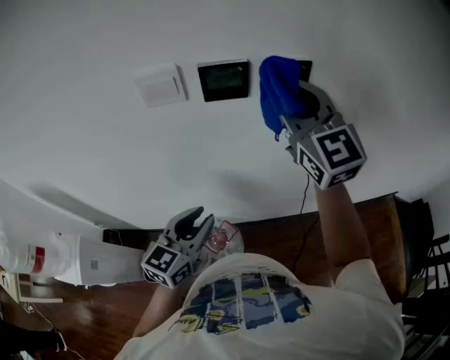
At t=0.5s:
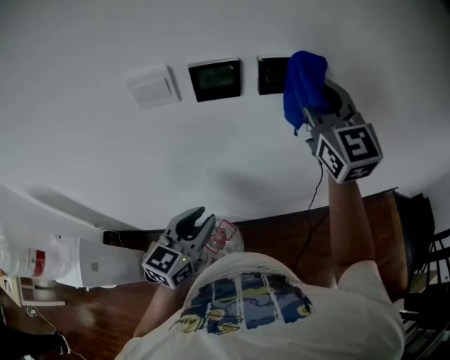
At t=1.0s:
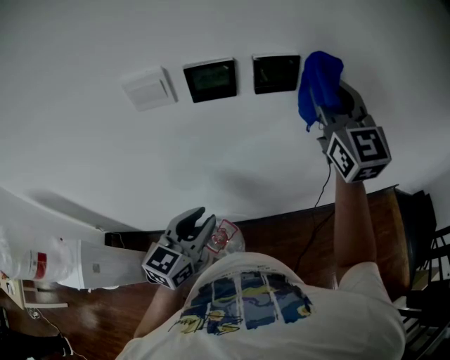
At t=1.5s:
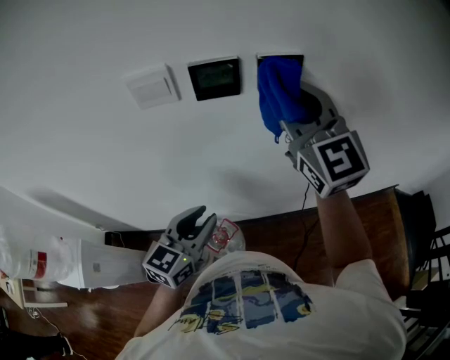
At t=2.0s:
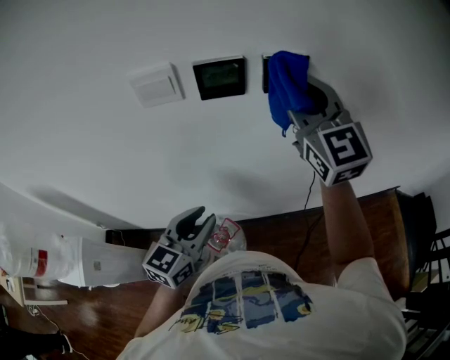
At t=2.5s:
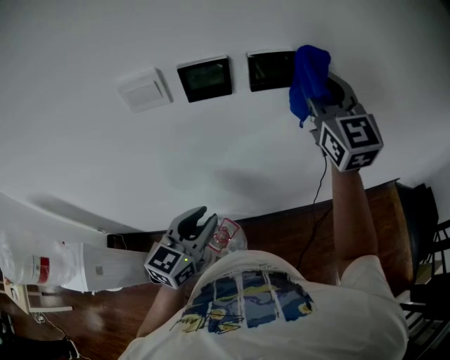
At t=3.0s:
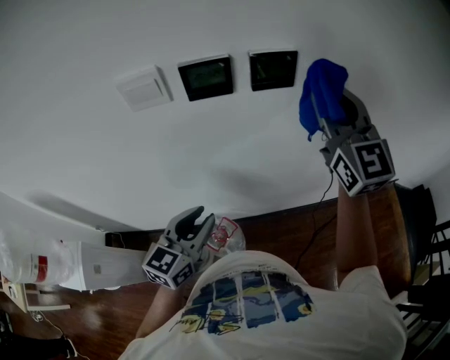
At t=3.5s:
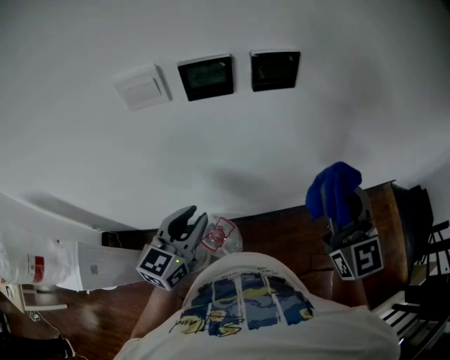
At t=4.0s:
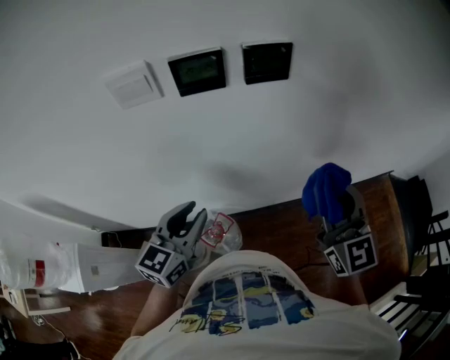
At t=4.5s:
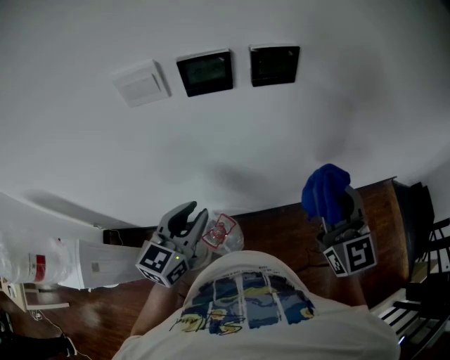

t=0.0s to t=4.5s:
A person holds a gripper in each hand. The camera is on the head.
t=0.0s to t=2.0s: The right gripper moves about 10 cm to the right and comes back.
t=2.0s to t=4.5s: The right gripper goes approximately 20 cm backward, downward and to the right.

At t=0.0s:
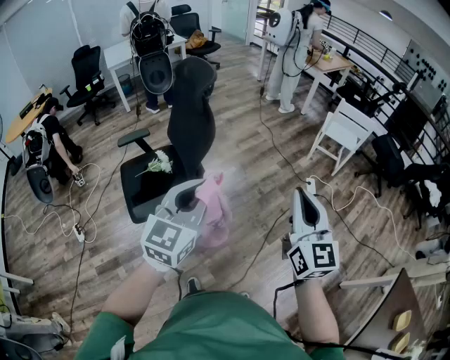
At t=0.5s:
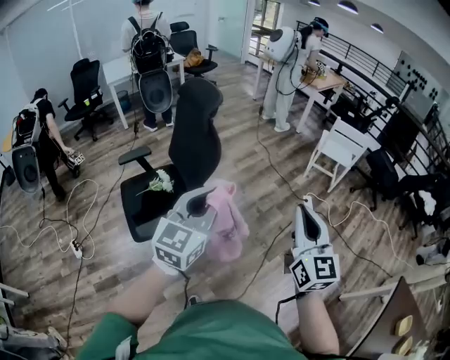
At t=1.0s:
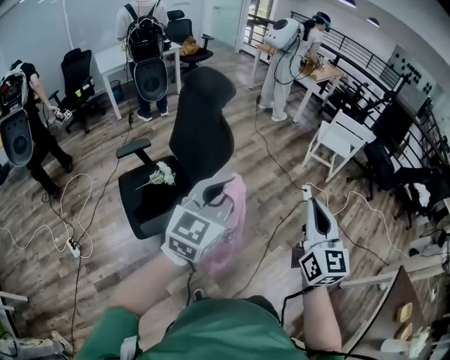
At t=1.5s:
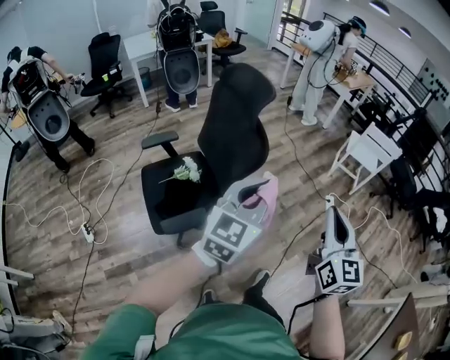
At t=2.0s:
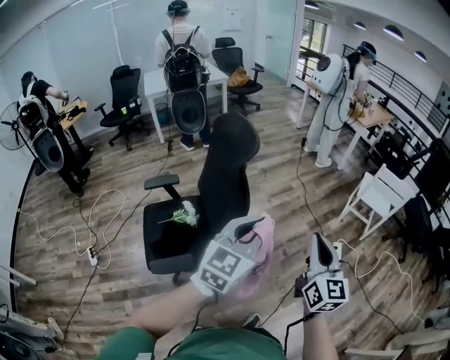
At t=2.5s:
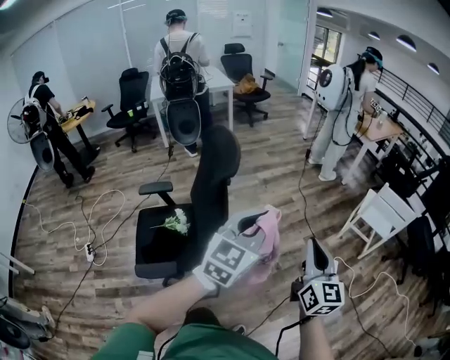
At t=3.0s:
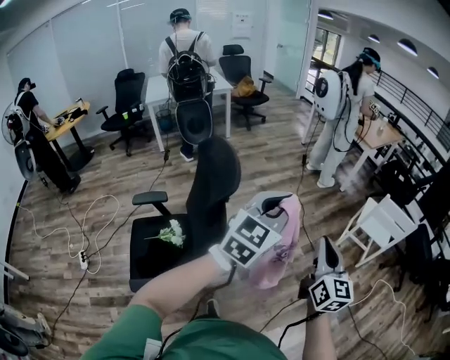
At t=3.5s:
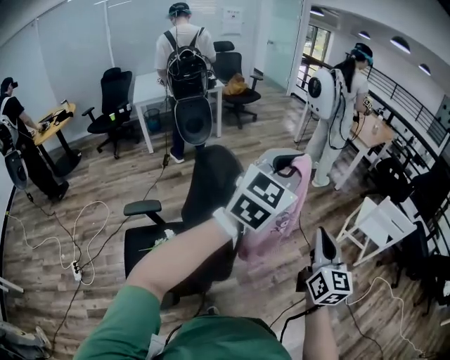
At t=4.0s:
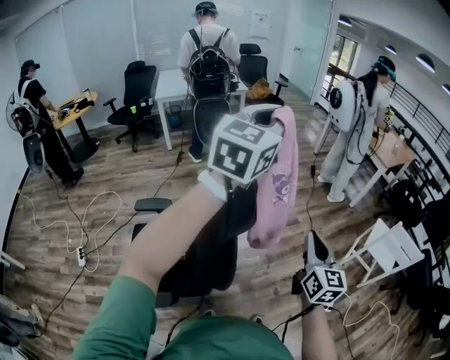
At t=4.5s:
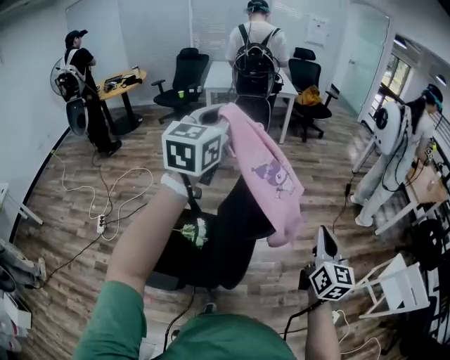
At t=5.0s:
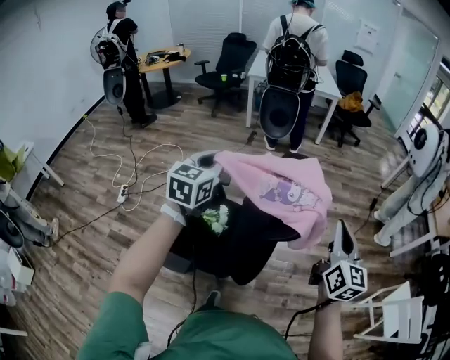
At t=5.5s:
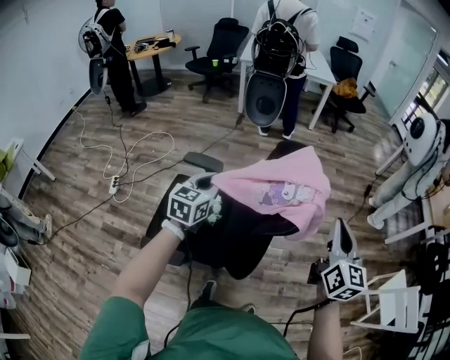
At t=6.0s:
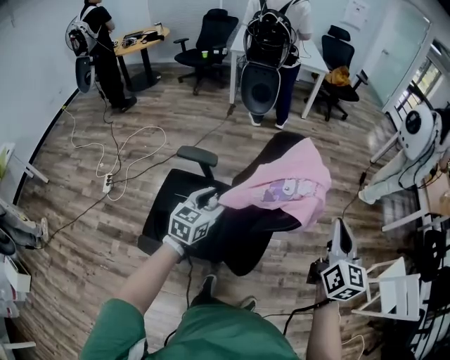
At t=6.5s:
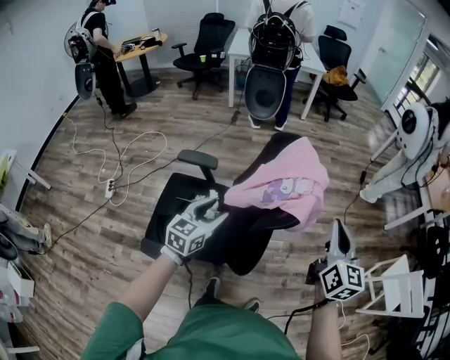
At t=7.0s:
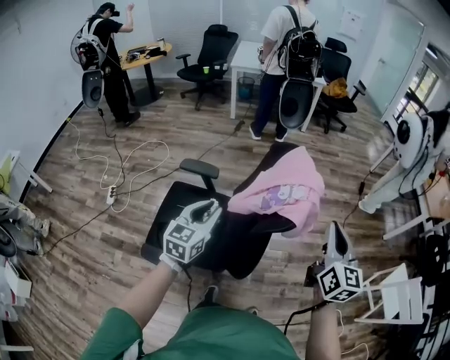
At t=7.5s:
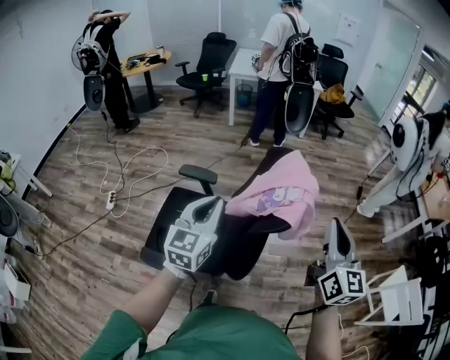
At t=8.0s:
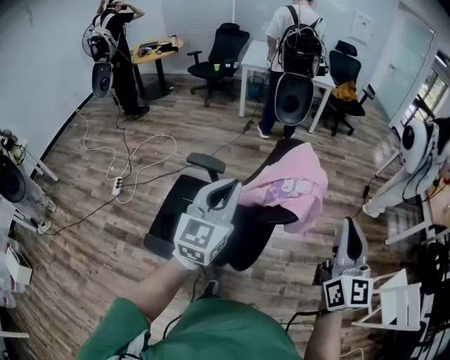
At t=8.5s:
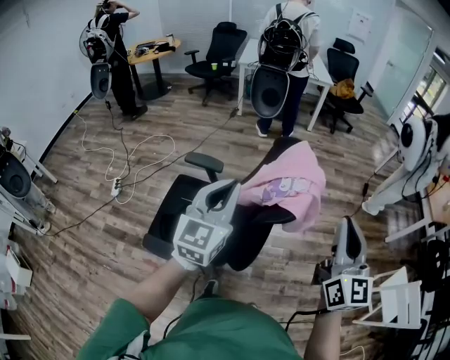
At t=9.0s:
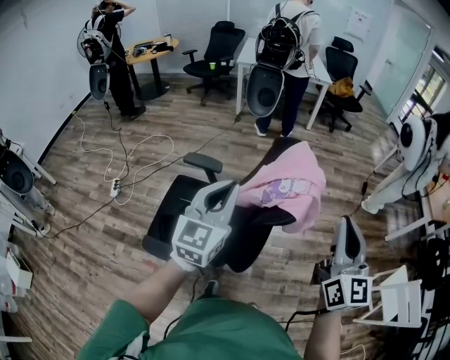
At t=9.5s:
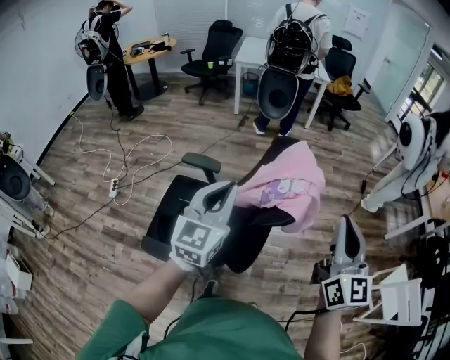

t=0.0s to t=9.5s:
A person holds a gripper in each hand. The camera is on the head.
t=0.0s to t=2.0s: Both grippers travel together forward, roughly 20 cm.
t=2.0s to t=4.0s: The right gripper shifts roughly 30 cm forward. The left gripper travels forward and upward by roughly 50 cm.
t=4.0s to t=5.5s: The right gripper ends up roughly 15 cm from where it was; the left gripper is displaced downward by roughly 35 cm, and swivels approximately 40 degrees.
t=5.5s to t=7.5s: The left gripper travels backward and upward by about 10 cm, and opens, then closes again. Meanwhile the right gripper heads upward, covering approximately 5 cm.
t=7.5s to t=9.5s: There are only small adjustments of the grippers.

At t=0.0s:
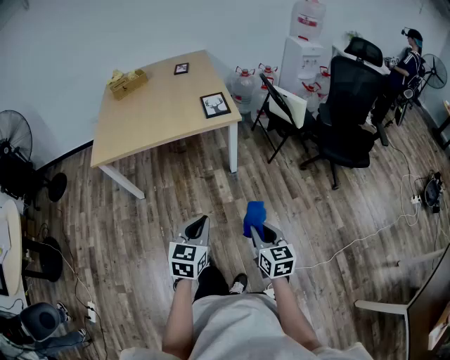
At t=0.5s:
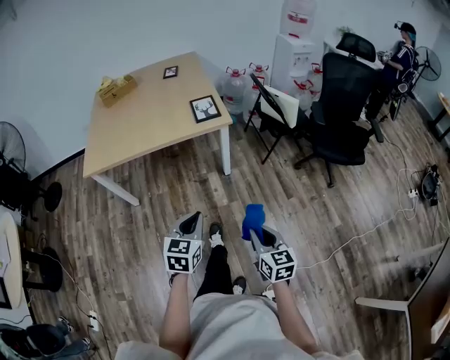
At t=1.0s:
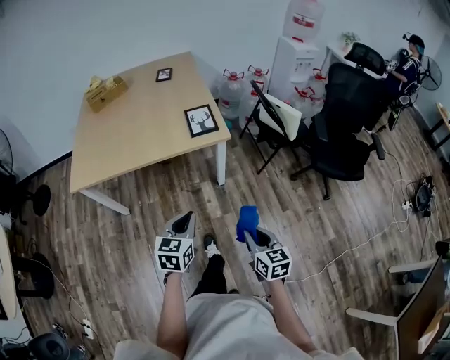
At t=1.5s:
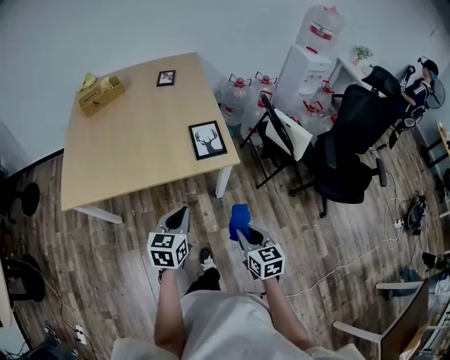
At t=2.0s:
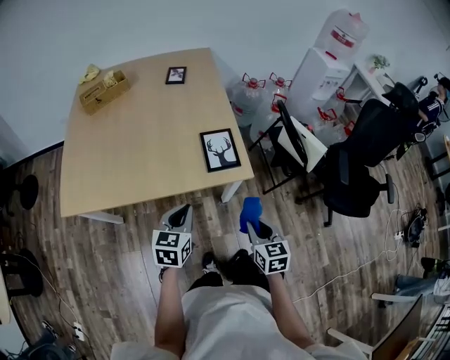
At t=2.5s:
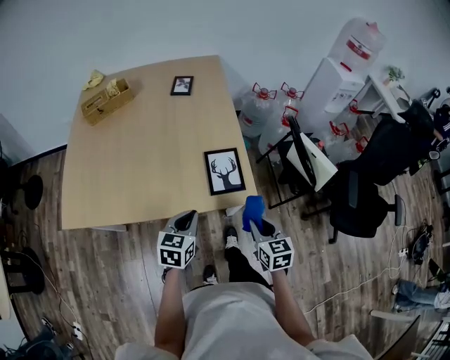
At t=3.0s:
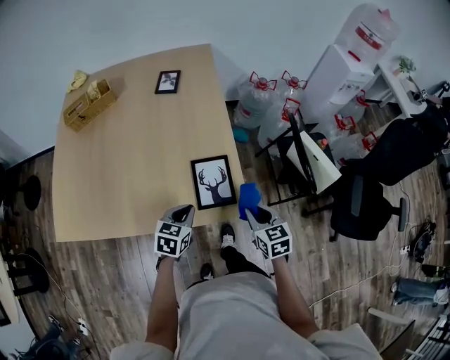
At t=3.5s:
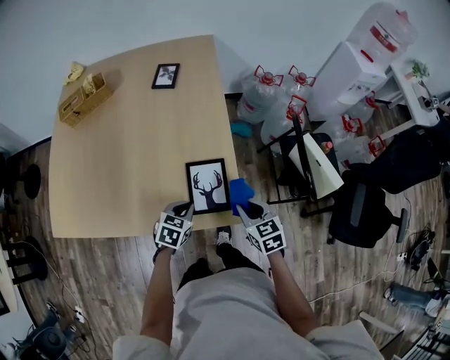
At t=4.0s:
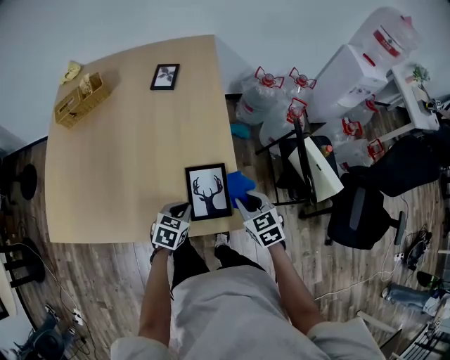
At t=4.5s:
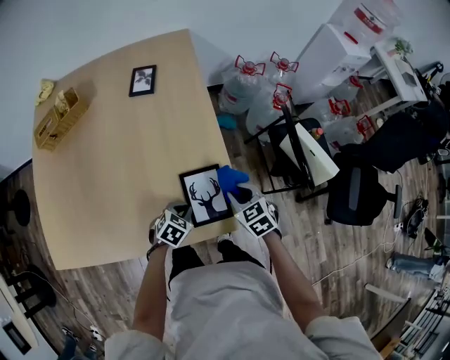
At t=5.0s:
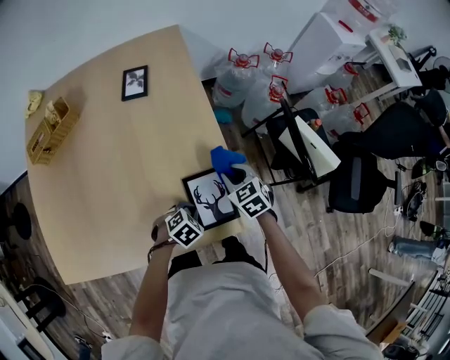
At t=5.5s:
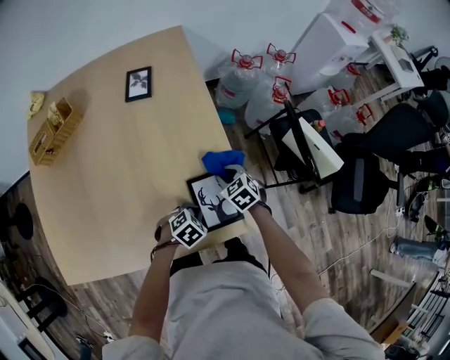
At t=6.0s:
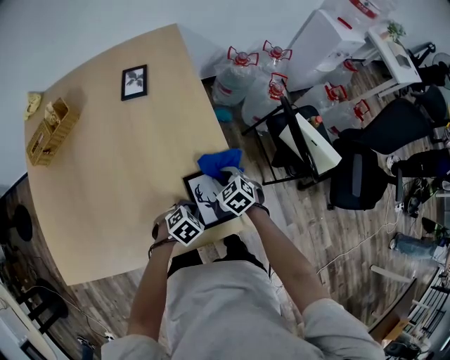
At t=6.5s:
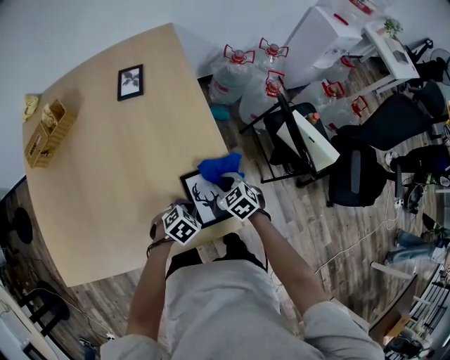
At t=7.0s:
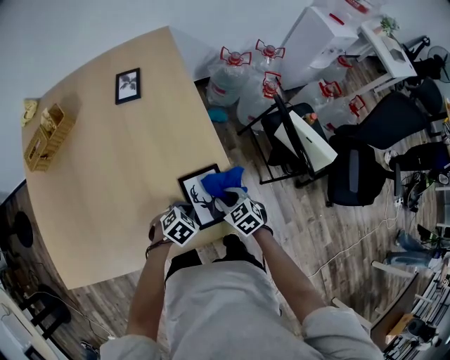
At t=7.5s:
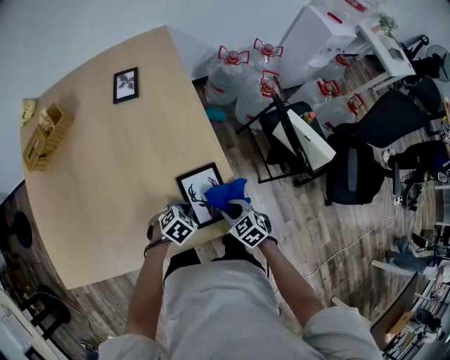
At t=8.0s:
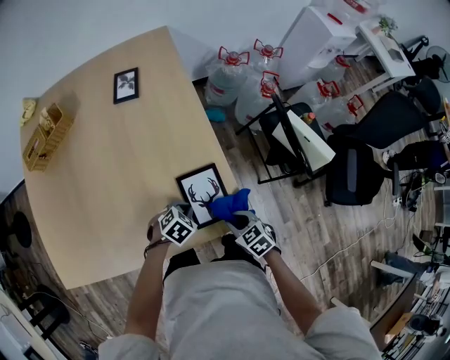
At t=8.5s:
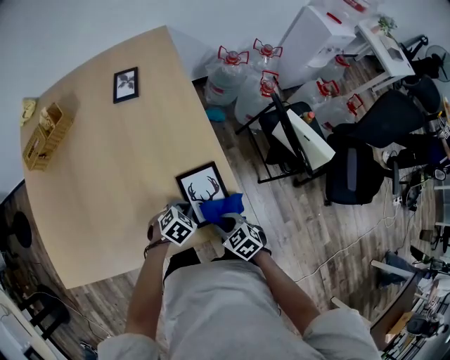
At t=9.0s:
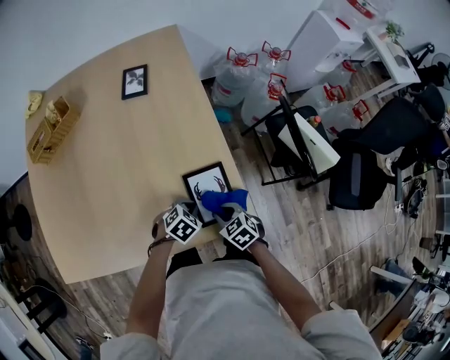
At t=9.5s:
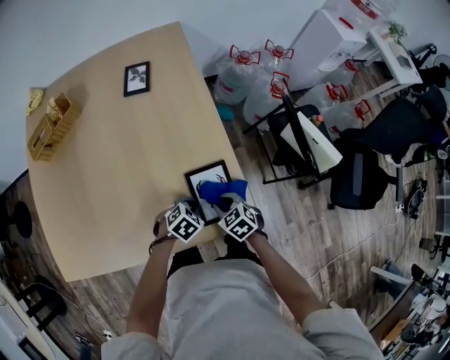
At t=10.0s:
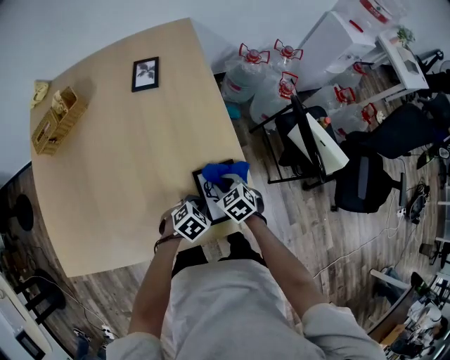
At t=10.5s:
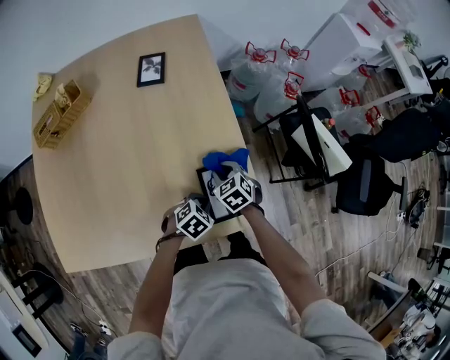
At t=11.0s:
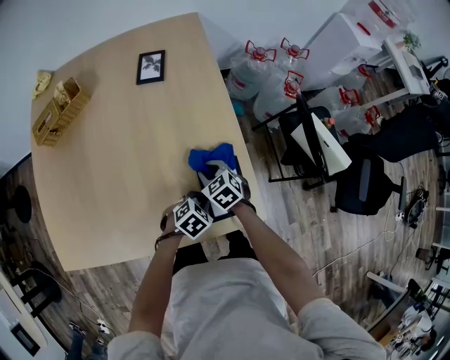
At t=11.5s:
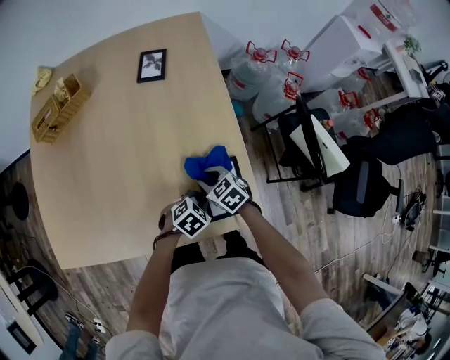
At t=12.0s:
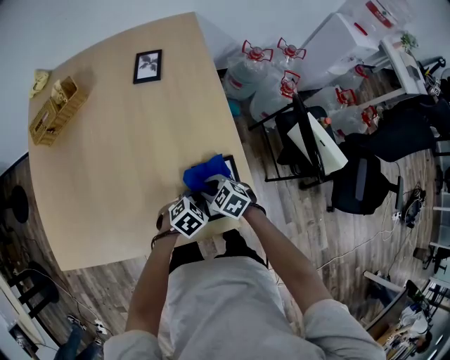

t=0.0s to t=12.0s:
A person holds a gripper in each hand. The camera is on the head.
t=0.0s to t=2.0s: Both grippers are carried forward, roughly 50 cm.
t=2.0s to t=4.0s: The right gripper shifts some 35 cm forward, and turns by some 30 degrees. Meanwhile the left gripper heads forward and downward, covering about 30 cm, and swivels some 20 degrees.
t=4.0s to t=6.0s: The left gripper moves roughly 5 cm, and rotates about 40 degrees, while the right gripper heads downward, to the left and forward, covering approximately 15 cm.
t=6.0s to t=8.0s: The right gripper heads backward and to the right, covering roughly 15 cm.
t=8.0s to t=10.0s: The right gripper travels forward and to the left by some 15 cm.
t=10.0s to t=12.0s: The right gripper moves approximately 5 cm, and turns by some 20 degrees.

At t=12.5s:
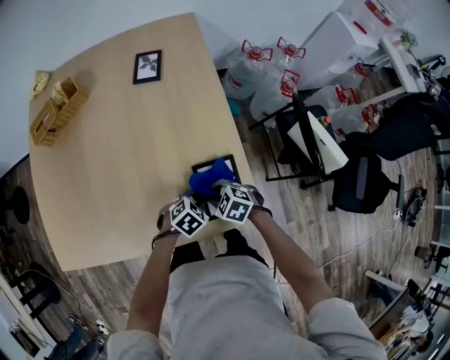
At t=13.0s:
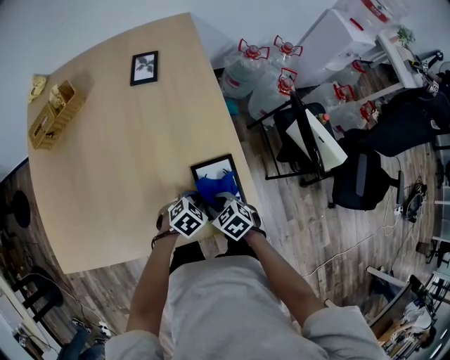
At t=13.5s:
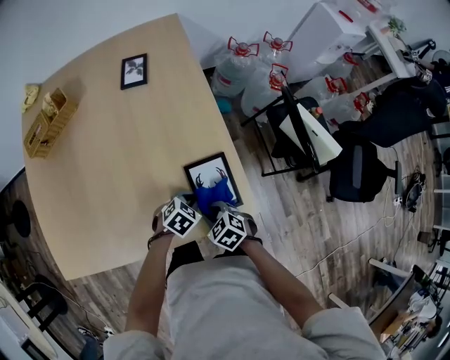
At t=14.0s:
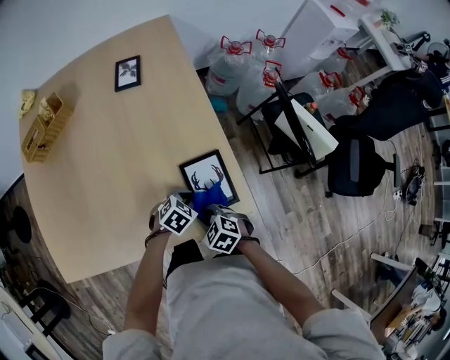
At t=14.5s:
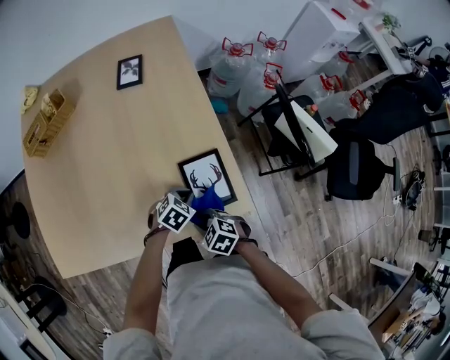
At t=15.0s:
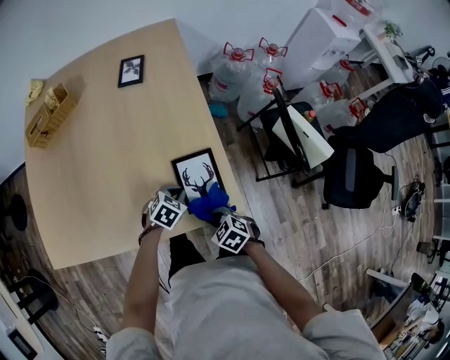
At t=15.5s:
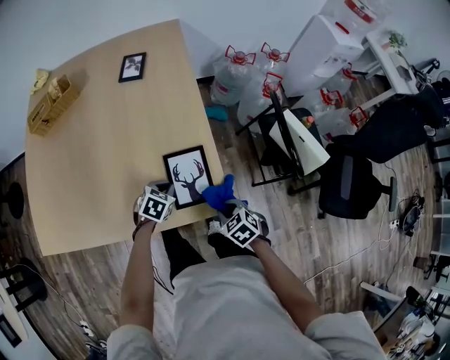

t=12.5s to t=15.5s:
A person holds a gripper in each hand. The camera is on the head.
t=12.5s to t=14.0s: The right gripper moves some 10 cm.
t=14.0s to t=15.5s: The left gripper changes its angle by about 20 degrees; the right gripper moves approximately 15 cm.
